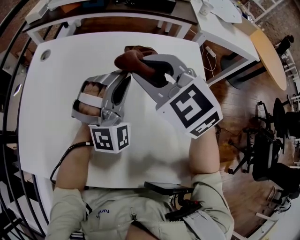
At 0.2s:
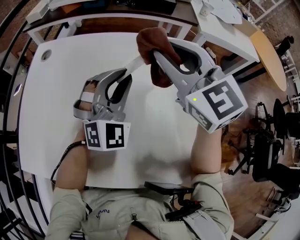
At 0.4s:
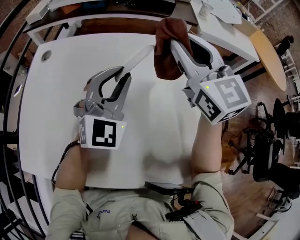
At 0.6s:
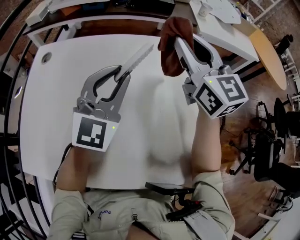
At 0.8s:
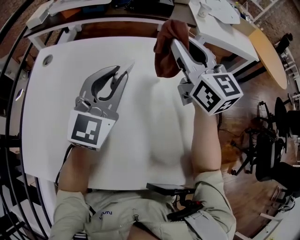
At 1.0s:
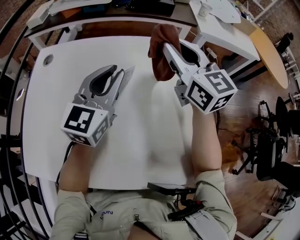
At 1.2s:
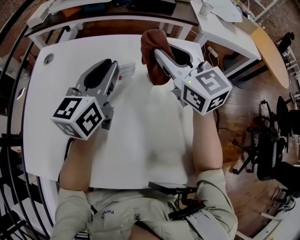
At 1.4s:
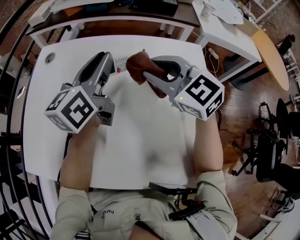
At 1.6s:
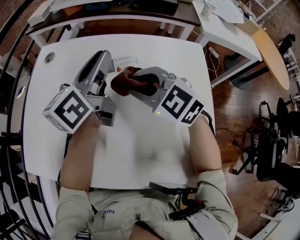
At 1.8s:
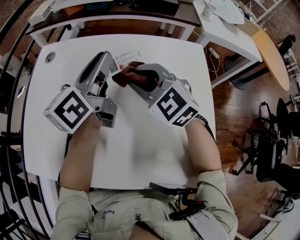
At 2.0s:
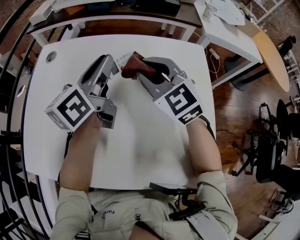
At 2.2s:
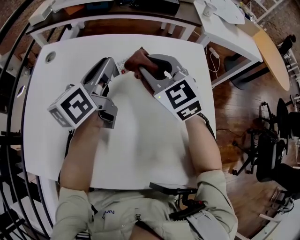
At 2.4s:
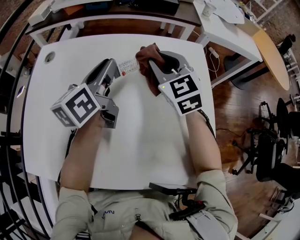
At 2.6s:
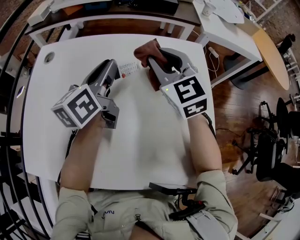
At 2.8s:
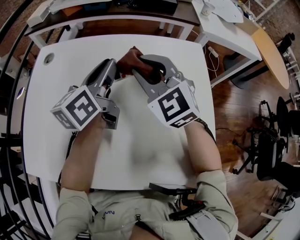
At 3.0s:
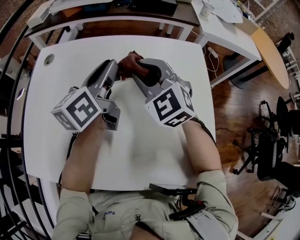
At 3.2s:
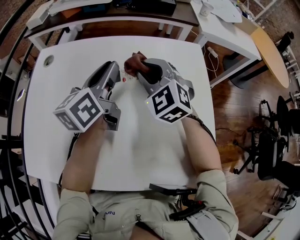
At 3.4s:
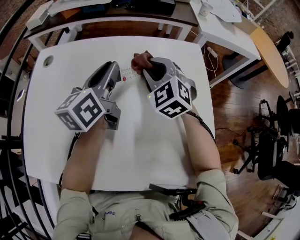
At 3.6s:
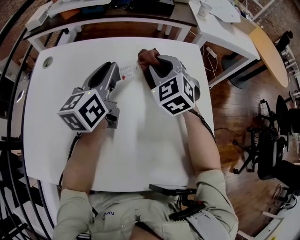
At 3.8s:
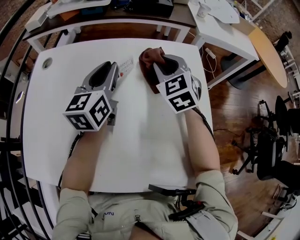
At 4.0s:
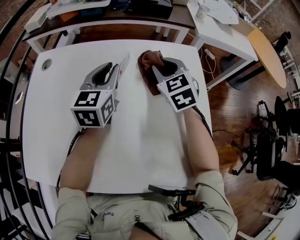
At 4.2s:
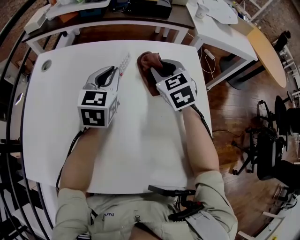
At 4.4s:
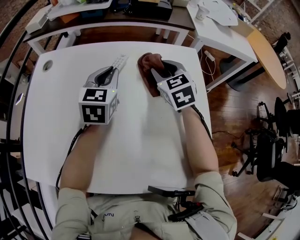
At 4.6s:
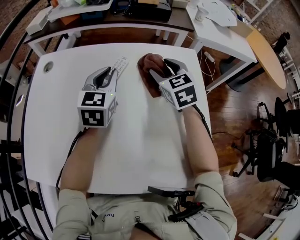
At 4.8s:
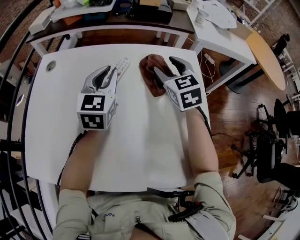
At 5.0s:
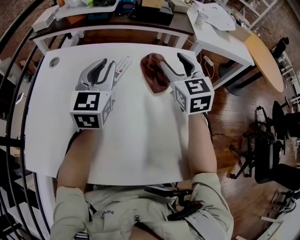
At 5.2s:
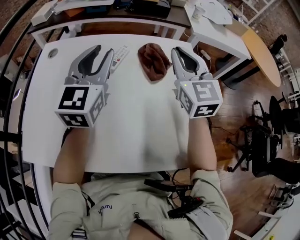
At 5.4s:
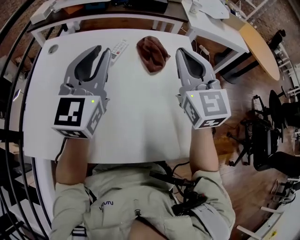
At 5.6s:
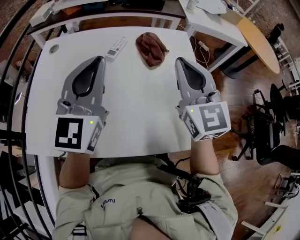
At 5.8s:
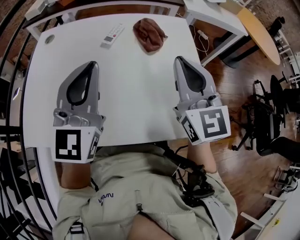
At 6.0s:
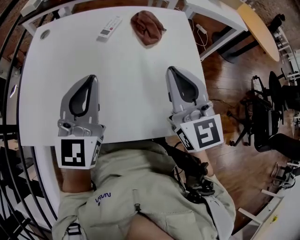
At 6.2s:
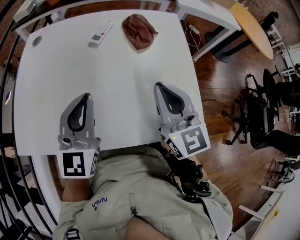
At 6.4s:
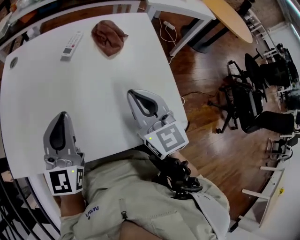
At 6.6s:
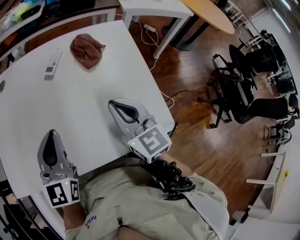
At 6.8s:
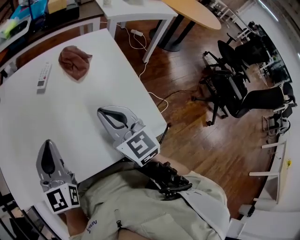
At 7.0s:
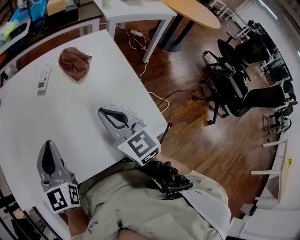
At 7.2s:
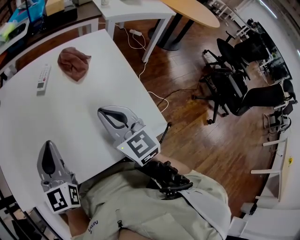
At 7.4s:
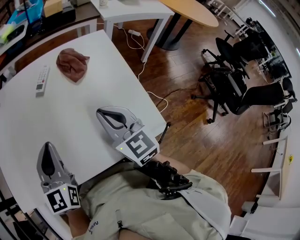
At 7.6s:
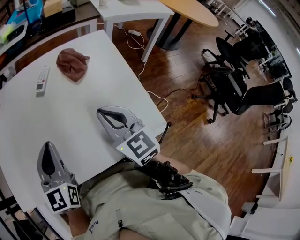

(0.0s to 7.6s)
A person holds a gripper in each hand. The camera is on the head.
0.0s - 1.6s: The right gripper travels downward by about 5 cm, and moves about 10 cm to the right and comes back; the left gripper travels to the left, upward and forward by approximately 10 cm, and rotates around the line of its fingers by about 100 degrees, counterclockwise from behind.
1.6s - 3.0s: The right gripper goes to the right and returns, some 10 cm each way, and rotates some 20 degrees.
3.0s - 4.6s: The left gripper travels downward by approximately 5 cm, and changes its angle by some 40 degrees, while the right gripper heads to the right and forward, covering approximately 10 cm, swivels some 30 degrees, and opens.
4.6s - 6.0s: The two grippers go roughly 25 cm backward. The right gripper rotates some 30 degrees, and closes up.
6.0s - 7.6s: The two grippers go about 5 cm downward.

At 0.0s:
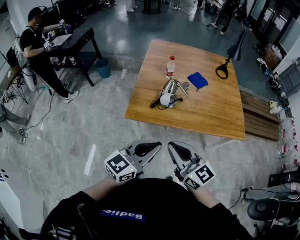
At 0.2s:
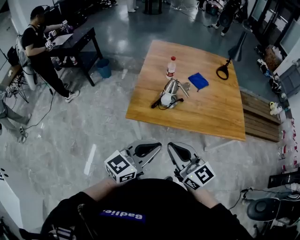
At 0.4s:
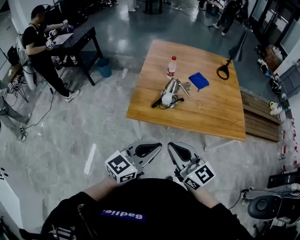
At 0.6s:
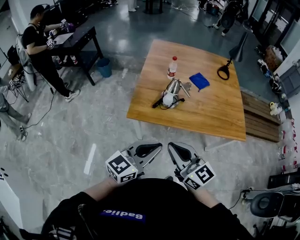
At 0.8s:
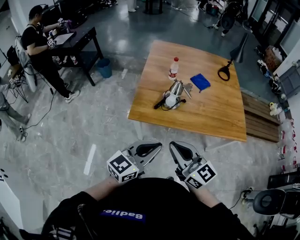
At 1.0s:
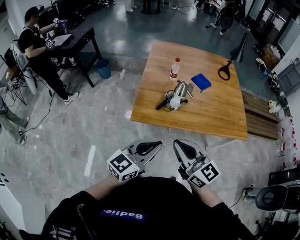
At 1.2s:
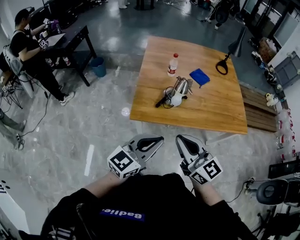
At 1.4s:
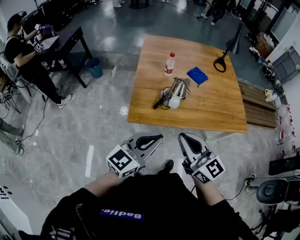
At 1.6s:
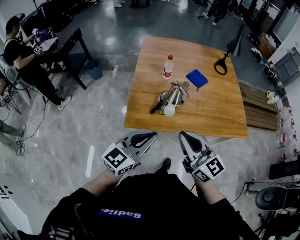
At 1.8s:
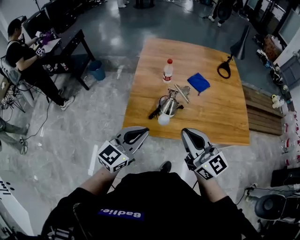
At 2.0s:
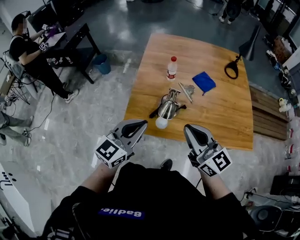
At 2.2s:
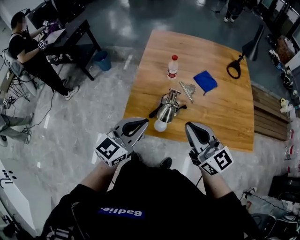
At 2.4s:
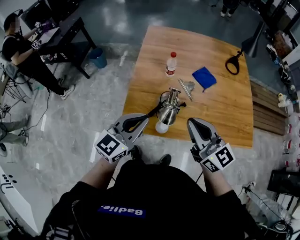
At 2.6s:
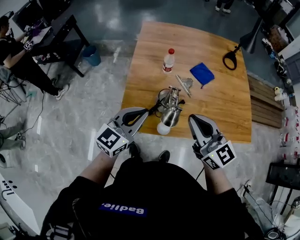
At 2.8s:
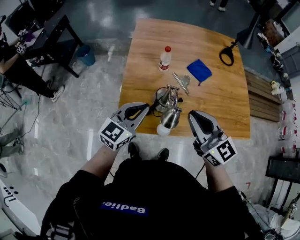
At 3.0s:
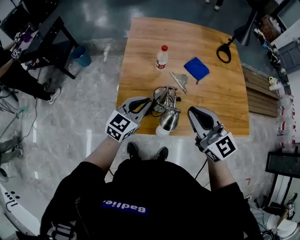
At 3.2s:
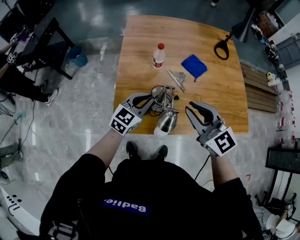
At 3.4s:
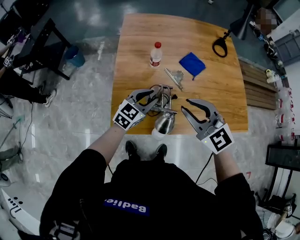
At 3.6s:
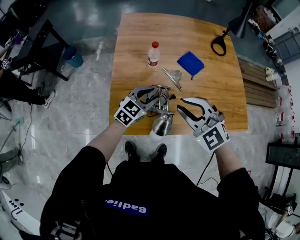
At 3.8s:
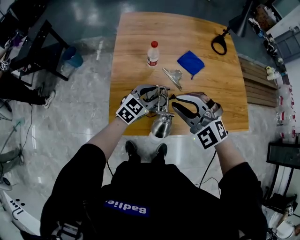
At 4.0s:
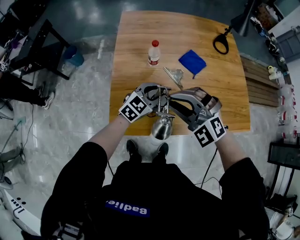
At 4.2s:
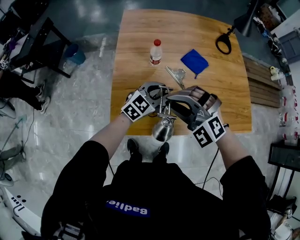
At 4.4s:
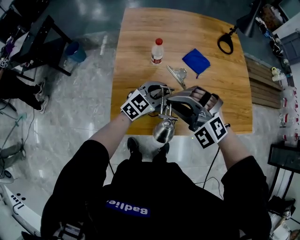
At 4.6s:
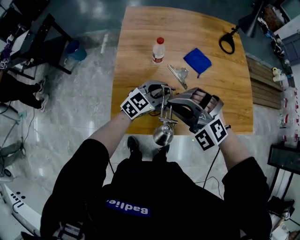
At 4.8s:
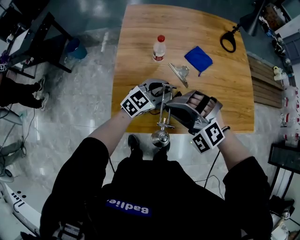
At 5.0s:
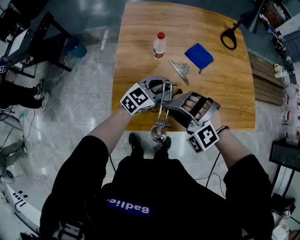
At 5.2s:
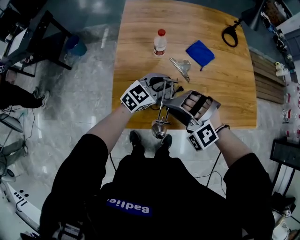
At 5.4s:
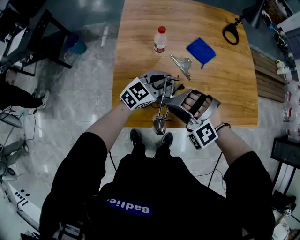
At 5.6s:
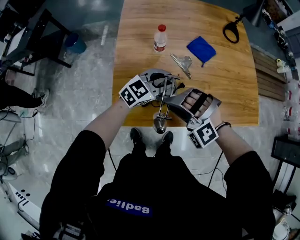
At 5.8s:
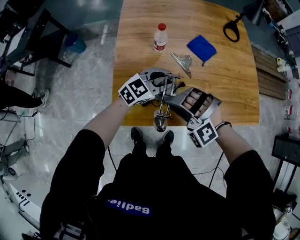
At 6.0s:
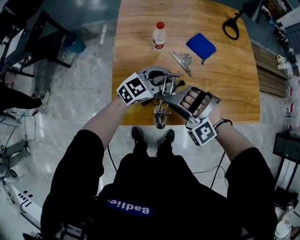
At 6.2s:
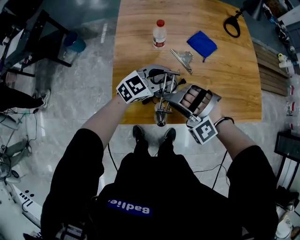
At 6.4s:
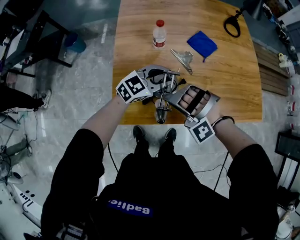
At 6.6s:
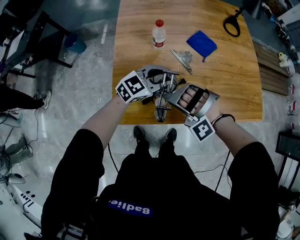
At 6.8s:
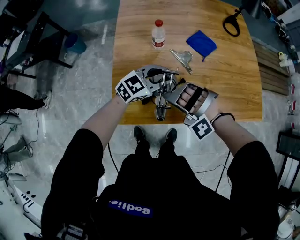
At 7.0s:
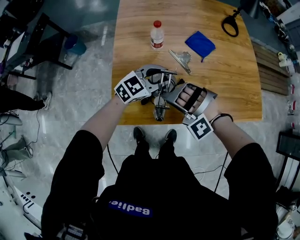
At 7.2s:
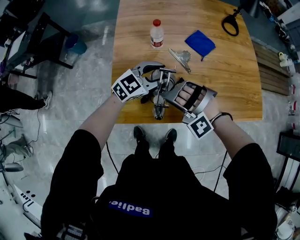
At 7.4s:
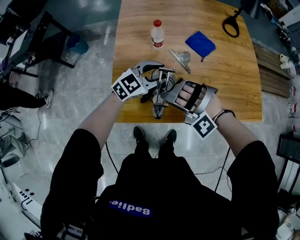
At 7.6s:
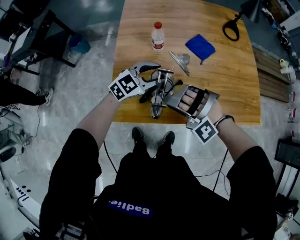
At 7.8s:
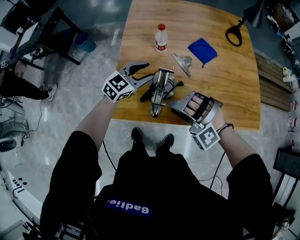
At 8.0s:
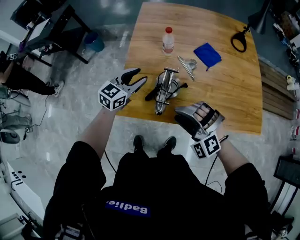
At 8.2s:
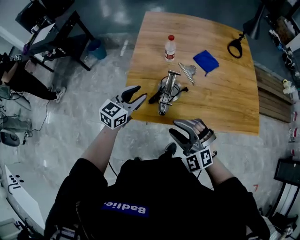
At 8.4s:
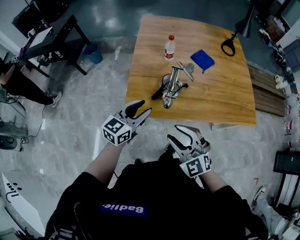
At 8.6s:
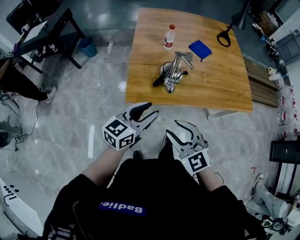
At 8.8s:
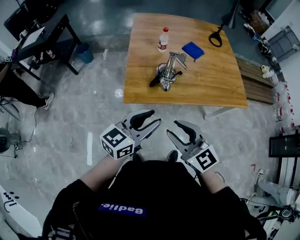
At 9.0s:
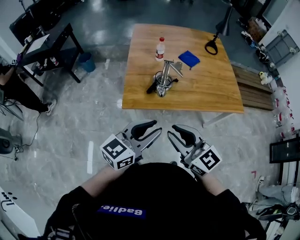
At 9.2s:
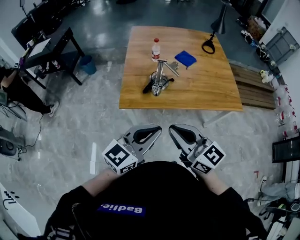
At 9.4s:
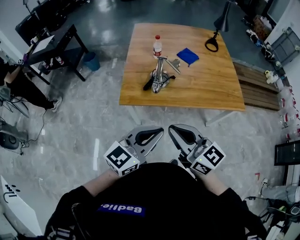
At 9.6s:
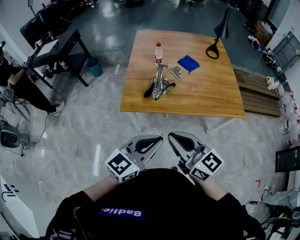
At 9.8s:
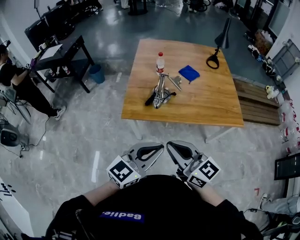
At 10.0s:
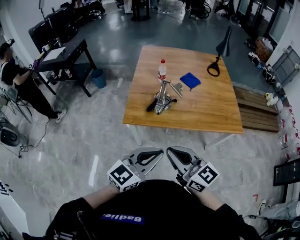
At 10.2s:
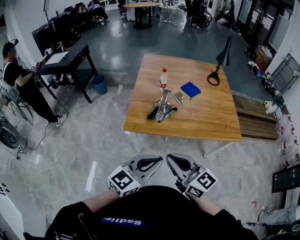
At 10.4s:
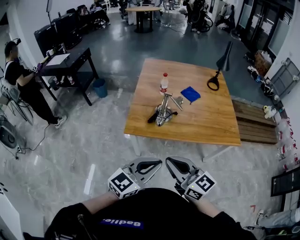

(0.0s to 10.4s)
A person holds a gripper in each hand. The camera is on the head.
0.0s - 1.4s: The right gripper travels forward by some 5 cm, while the left gripper goes about 10 cm to the left and forward.
1.4s - 3.0s: Both grippers move forward, roughly 25 cm.
3.0s - 4.4s: The left gripper is displaced to the right, forward and downward by approximately 15 cm, and opens its fingers; the right gripper moves downward and to the left, about 10 cm, and rolls counterclockwise, seen from behind, by approximately 60 degrees.
4.4s - 6.0s: The right gripper heads downward, covering roughly 10 cm, and turns by about 20 degrees.
6.0s - 7.4s: There are only small adjustments of the grippers.
7.4s - 9.0s: Both grippers travel together backward and upward, about 40 cm. The left gripper swivels roughly 30 degrees; the right gripper twists about 100 degrees clockwise, seen from behind.
9.0s - 10.4s: The right gripper ends up roughly 5 cm from where it was, and closes its fingers. The left gripper travels backward and to the right by some 10 cm, and closes.

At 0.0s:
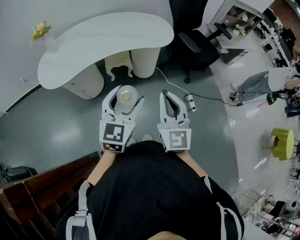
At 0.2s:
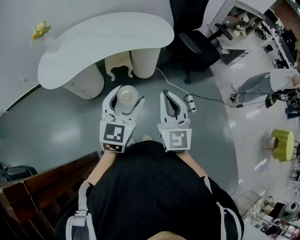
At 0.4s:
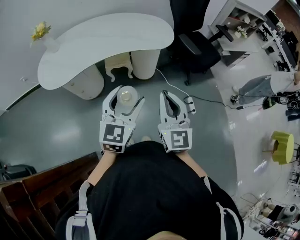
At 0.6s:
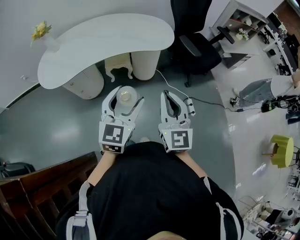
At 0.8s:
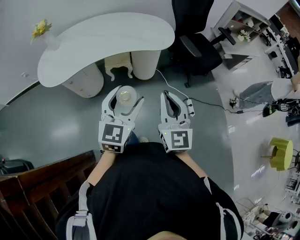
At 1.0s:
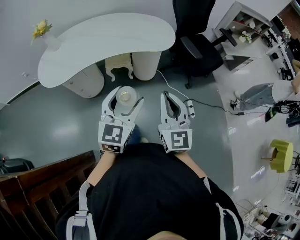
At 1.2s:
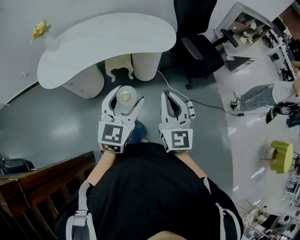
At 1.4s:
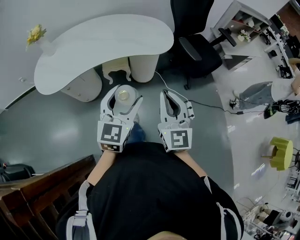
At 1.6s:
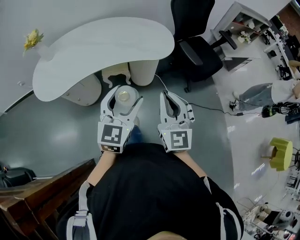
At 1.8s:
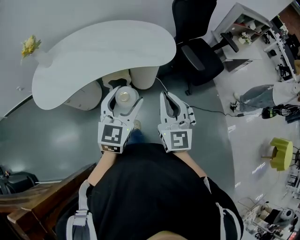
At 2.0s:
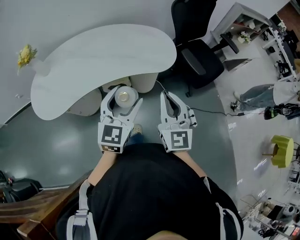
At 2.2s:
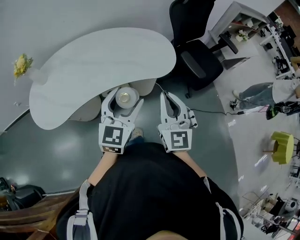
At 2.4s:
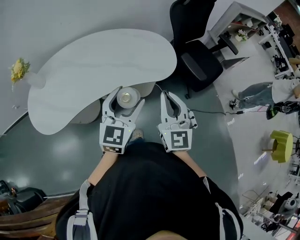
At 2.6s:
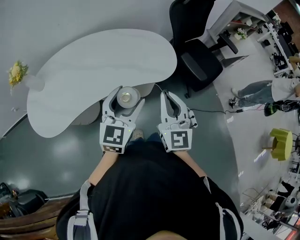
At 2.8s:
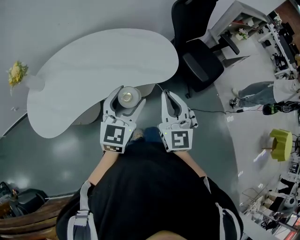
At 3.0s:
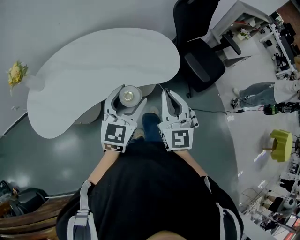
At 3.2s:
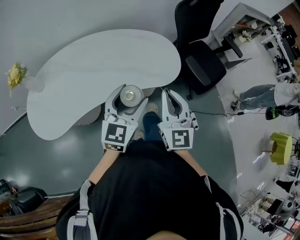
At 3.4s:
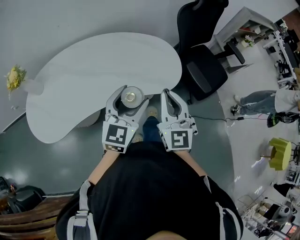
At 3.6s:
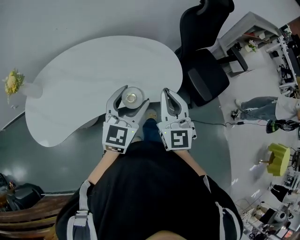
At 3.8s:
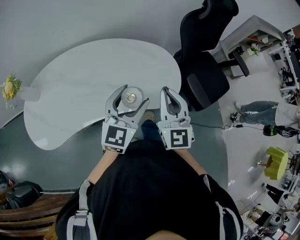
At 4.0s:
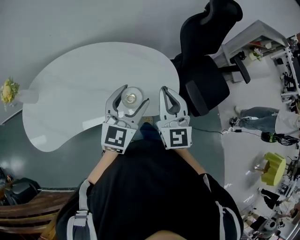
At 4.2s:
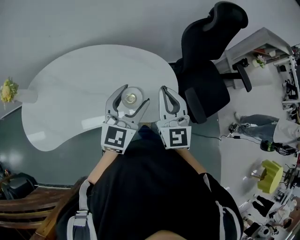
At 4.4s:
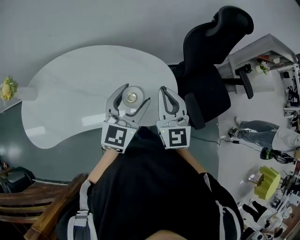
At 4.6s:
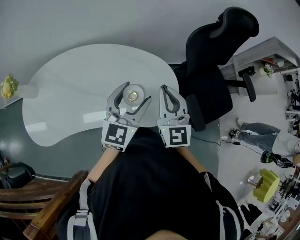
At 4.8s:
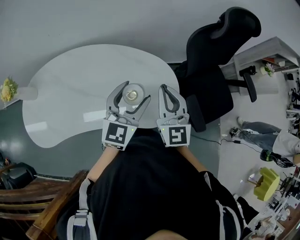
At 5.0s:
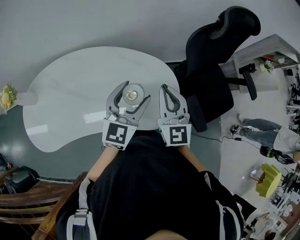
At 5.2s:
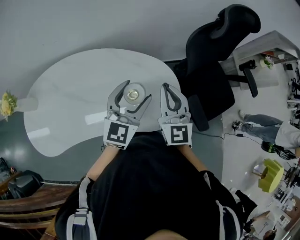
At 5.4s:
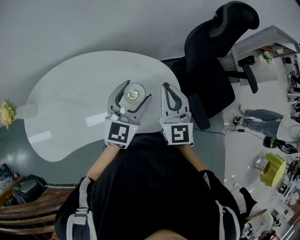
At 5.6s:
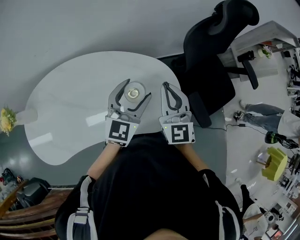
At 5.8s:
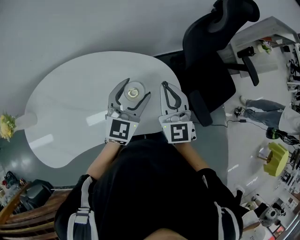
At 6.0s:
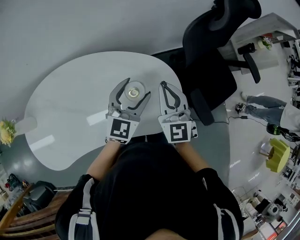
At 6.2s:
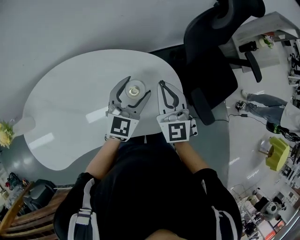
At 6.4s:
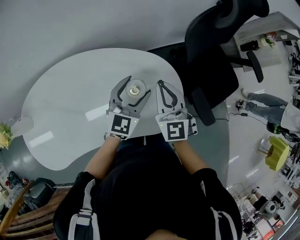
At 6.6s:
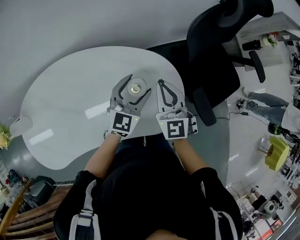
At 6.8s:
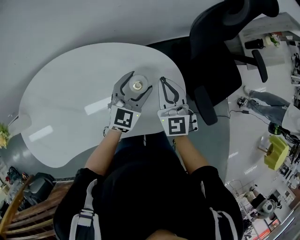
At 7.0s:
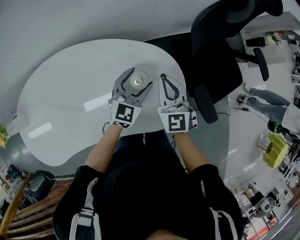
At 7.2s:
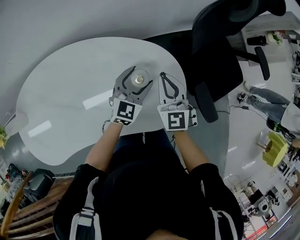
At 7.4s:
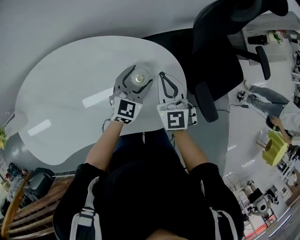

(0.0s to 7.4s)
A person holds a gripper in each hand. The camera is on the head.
0.0s - 1.4s: The grippers both shift forward by about 10 cm.
1.4s - 3.0s: The two grippers go some 25 cm forward.
3.0s - 4.4s: Both grippers travel together forward, some 30 cm.
4.4s - 6.0s: Both grippers move forward and downward, roughly 15 cm.
6.0s - 7.4s: Both grippers move downward, some 15 cm.
